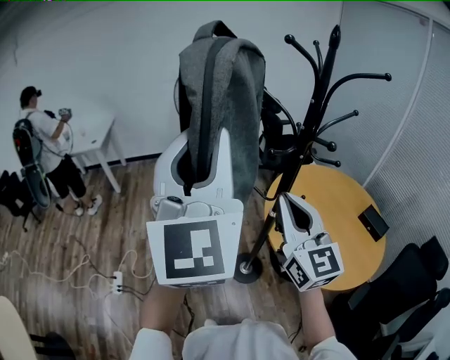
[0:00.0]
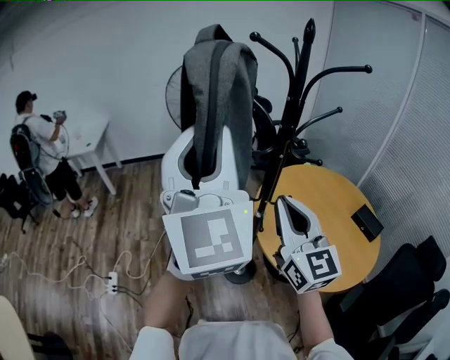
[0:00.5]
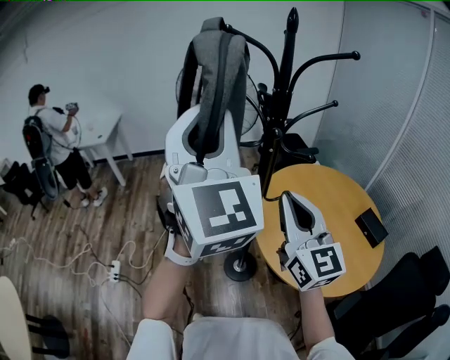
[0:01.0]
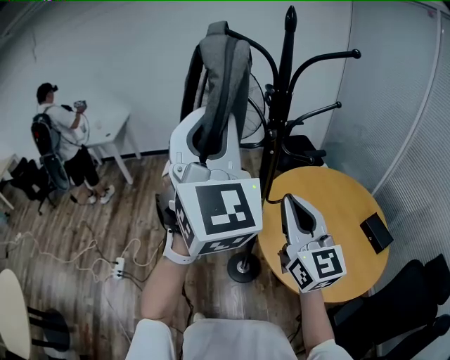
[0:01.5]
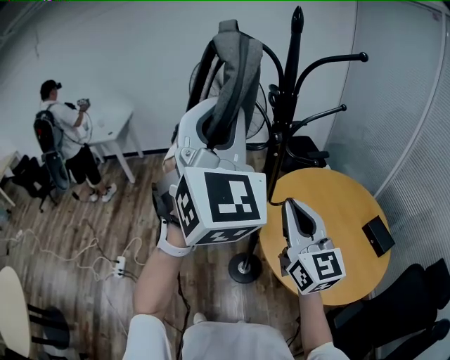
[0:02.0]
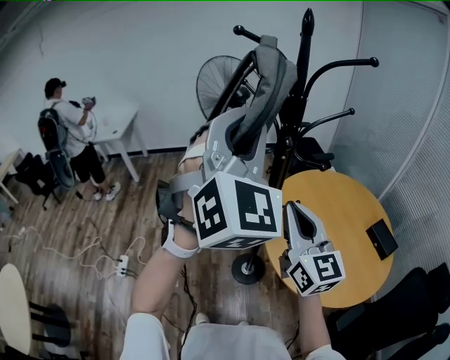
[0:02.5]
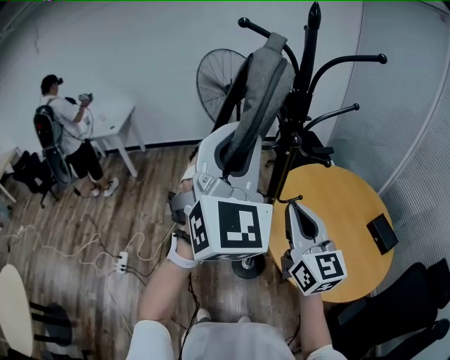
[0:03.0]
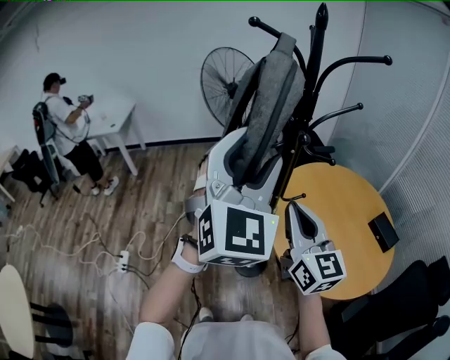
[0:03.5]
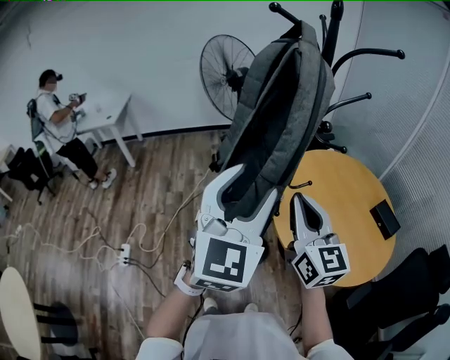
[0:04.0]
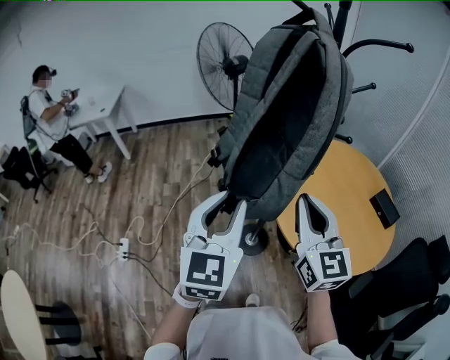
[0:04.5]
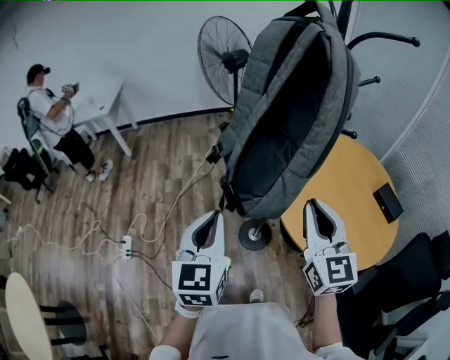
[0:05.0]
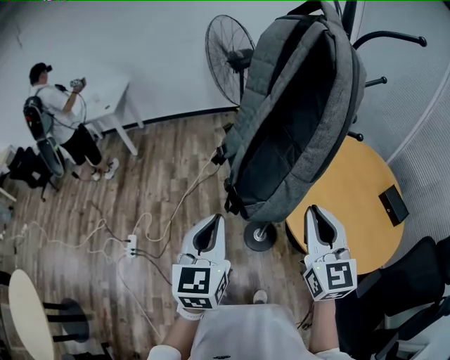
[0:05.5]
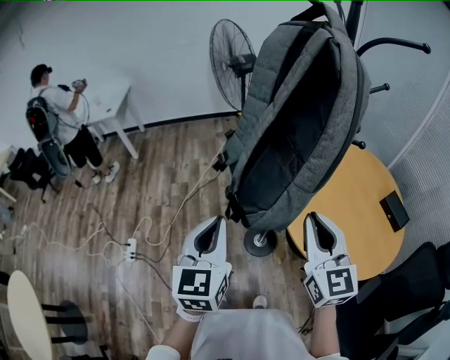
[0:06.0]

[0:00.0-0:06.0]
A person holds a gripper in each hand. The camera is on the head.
0:00.0 to 0:02.0: The grippers both shift to the right by roughly 15 cm. The left gripper swivels approximately 30 degrees.
0:02.0 to 0:04.0: The right gripper is displaced to the left by approximately 5 cm; the left gripper shifts approximately 15 cm downward, changes its angle by approximately 30 degrees, and opens its fingers.
0:04.0 to 0:06.0: The left gripper moves downward and to the left, approximately 20 cm, rotates roughly 30 degrees, and closes its fingers; the right gripper ends up roughly 5 cm from where it was.

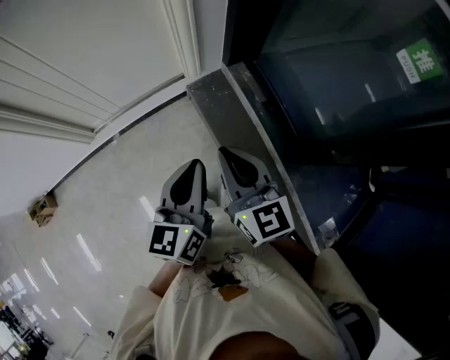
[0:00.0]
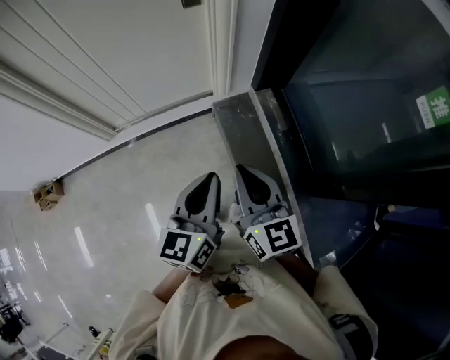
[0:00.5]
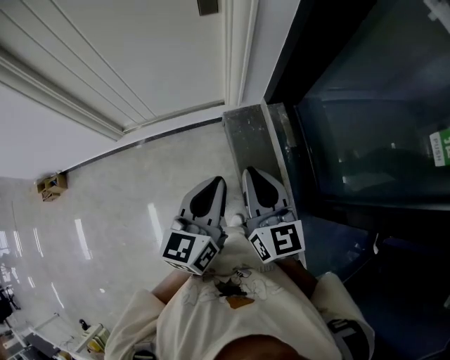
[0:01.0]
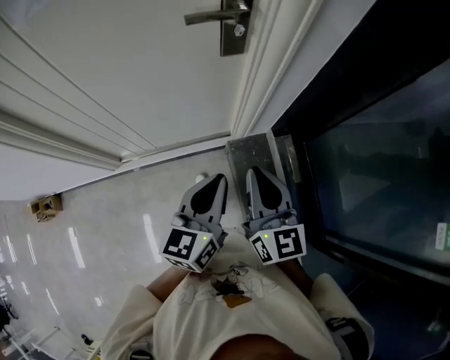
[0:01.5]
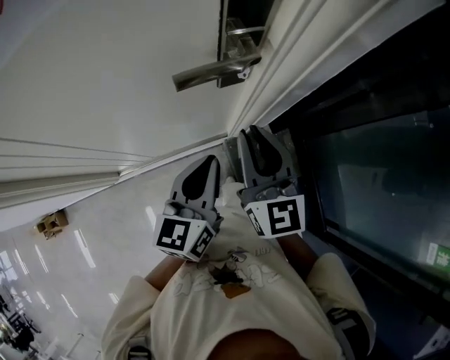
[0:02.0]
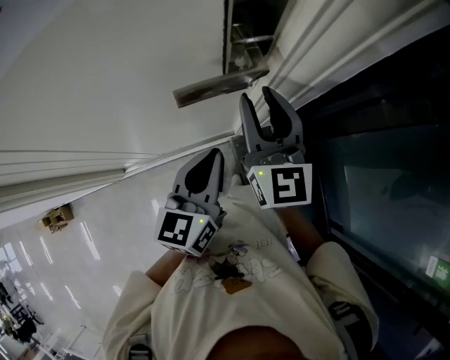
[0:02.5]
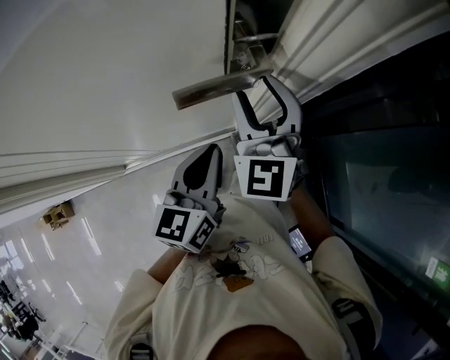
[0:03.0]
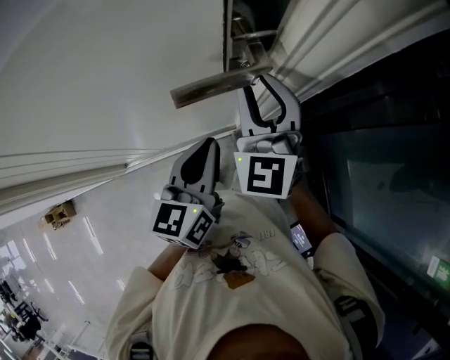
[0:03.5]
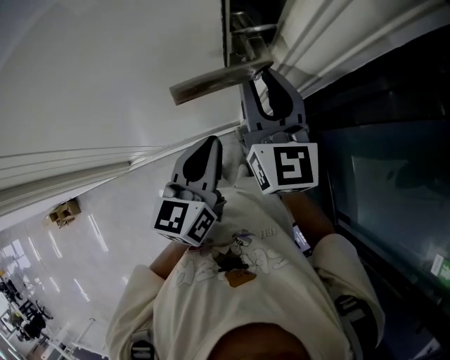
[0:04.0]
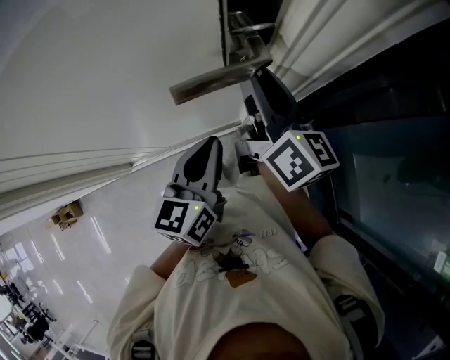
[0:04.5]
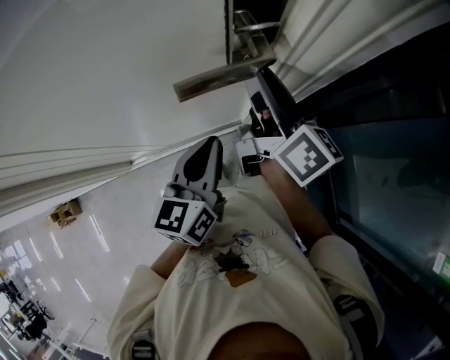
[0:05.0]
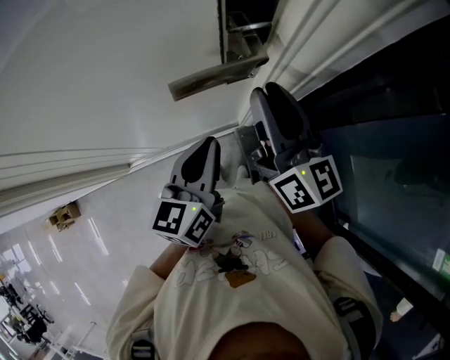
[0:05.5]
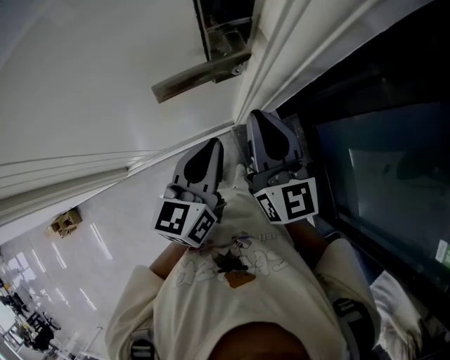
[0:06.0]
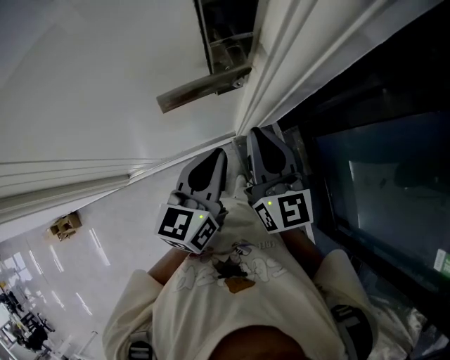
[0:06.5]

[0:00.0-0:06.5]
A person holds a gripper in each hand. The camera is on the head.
0:00.0 to 0:02.0: Both grippers are carried forward, roughly 50 cm.
0:02.0 to 0:04.5: The left gripper ends up roughly 5 cm from where it was, while the right gripper is displaced forward by roughly 10 cm, swivels about 40 degrees, and opens, then closes once more.
0:04.5 to 0:06.5: The right gripper travels backward by approximately 10 cm, changes its angle by some 20 degrees, and closes up.

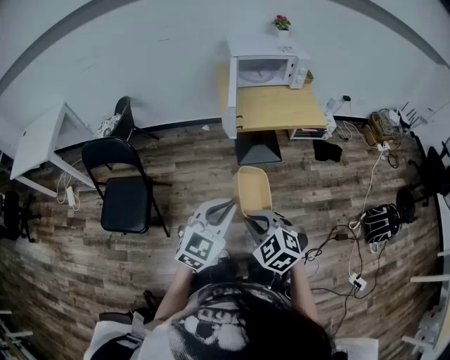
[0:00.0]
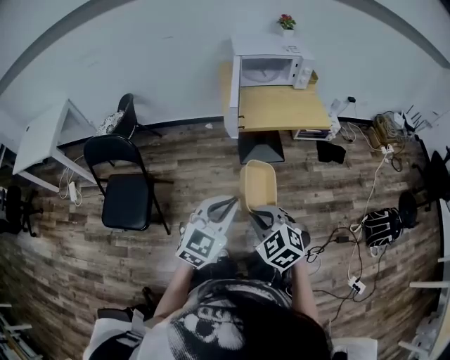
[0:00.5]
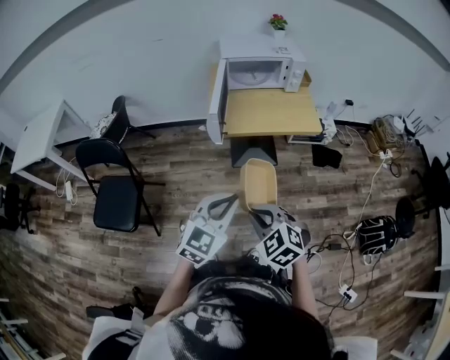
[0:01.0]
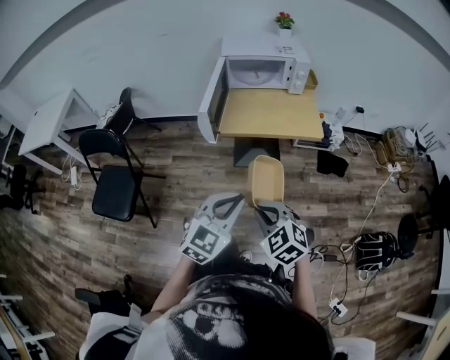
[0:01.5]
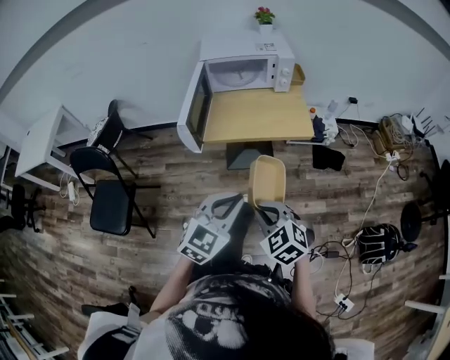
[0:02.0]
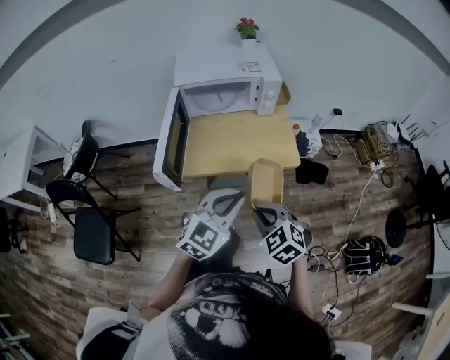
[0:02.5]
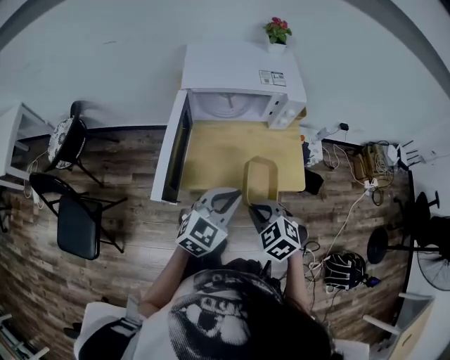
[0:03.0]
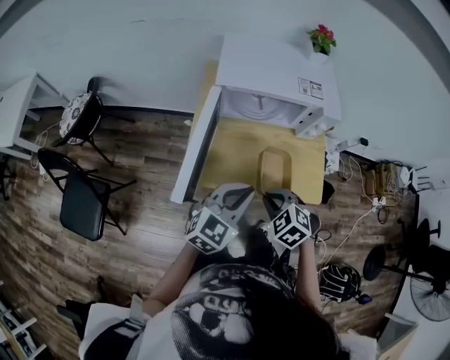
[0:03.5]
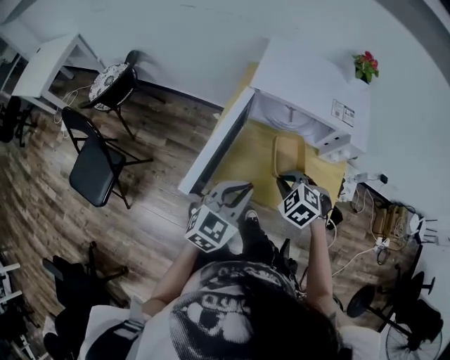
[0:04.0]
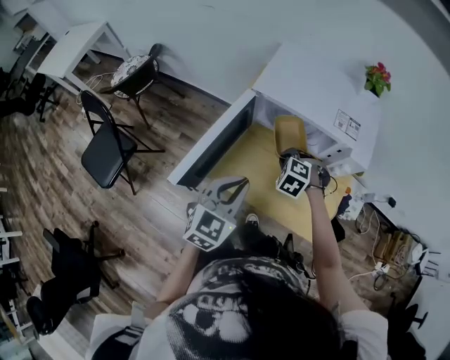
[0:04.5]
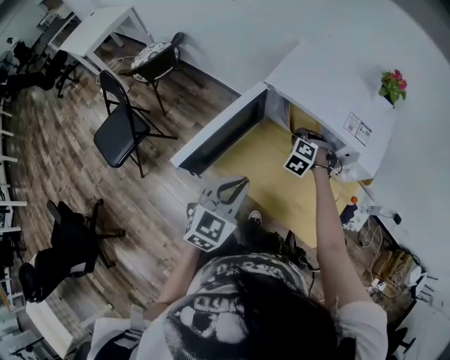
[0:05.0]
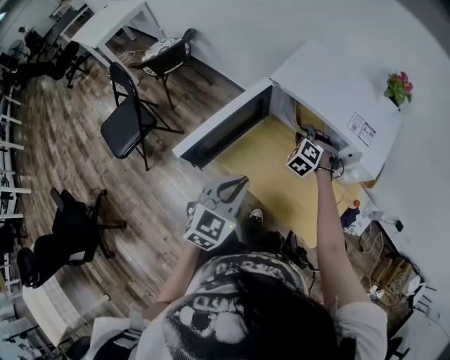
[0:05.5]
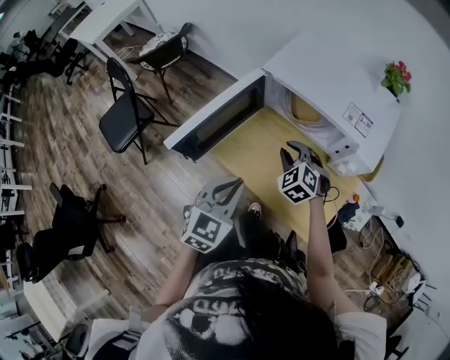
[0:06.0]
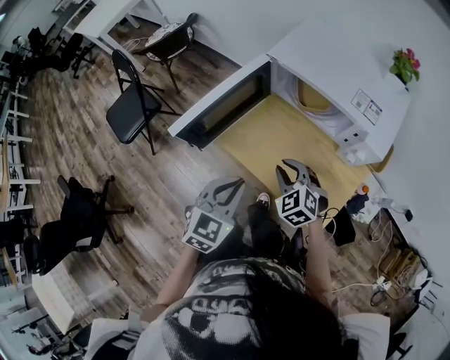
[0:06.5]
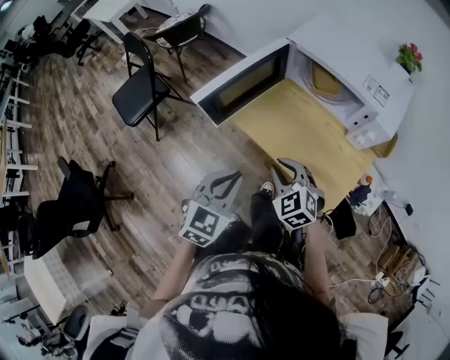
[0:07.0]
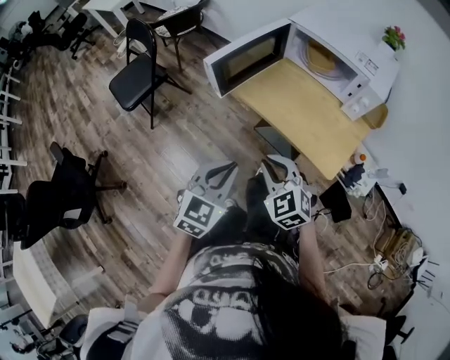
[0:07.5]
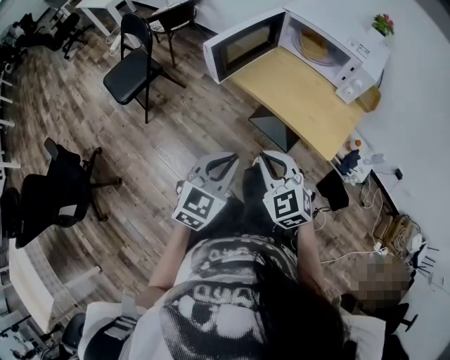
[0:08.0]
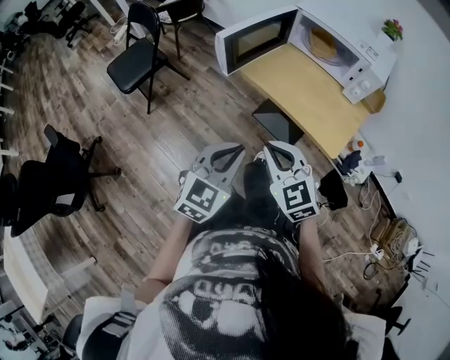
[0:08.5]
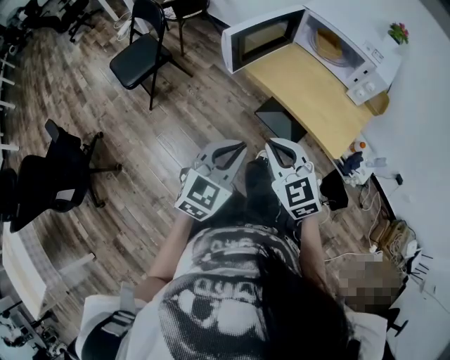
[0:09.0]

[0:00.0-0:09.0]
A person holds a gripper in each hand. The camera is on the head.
0:00.0 to 0:02.0: The grippers both shift to the right and forward by approximately 25 cm.
0:02.0 to 0:04.5: The left gripper ends up roughly 40 cm from where it was, and swivels approximately 30 degrees. Meanwhile the right gripper ends up roughly 60 cm from where it was, and rotates around the line of its fingers by roughly 40 degrees, counterclockwise from behind.
0:04.5 to 0:07.0: Both grippers travel together backward, about 20 cm. The right gripper changes its angle by some 30 degrees.
0:07.0 to 0:09.0: The right gripper moves backward, to the left and upward, roughly 25 cm; the left gripper heads backward, covering about 15 cm.

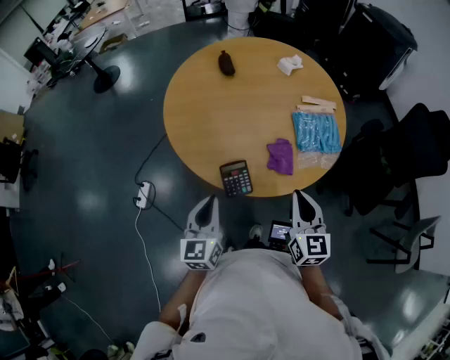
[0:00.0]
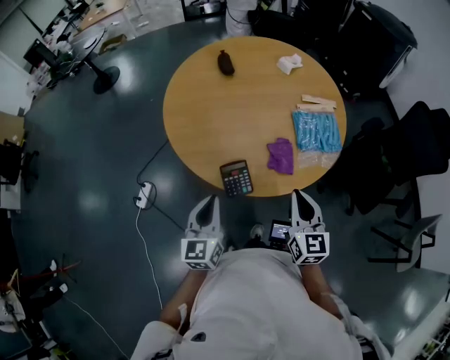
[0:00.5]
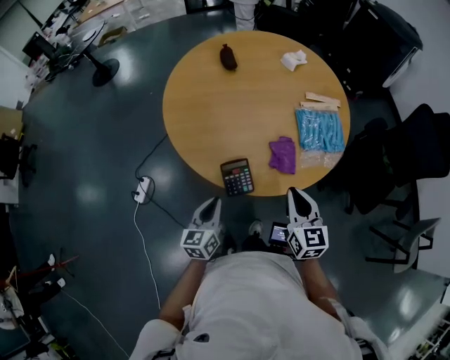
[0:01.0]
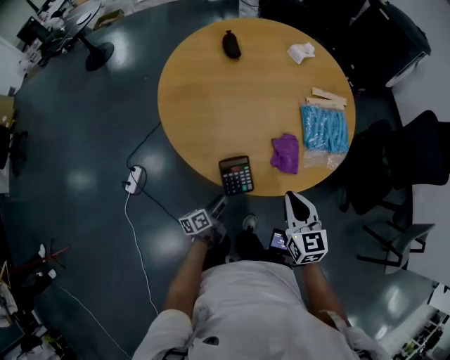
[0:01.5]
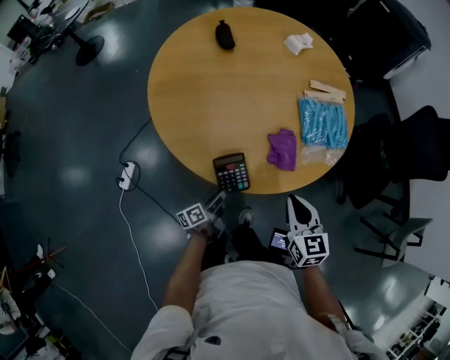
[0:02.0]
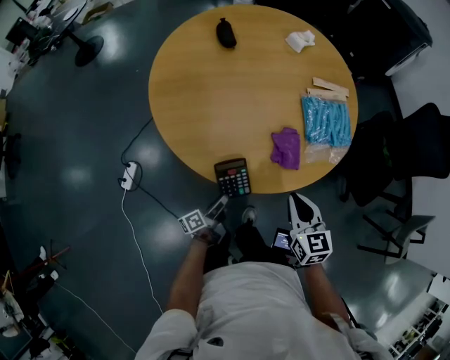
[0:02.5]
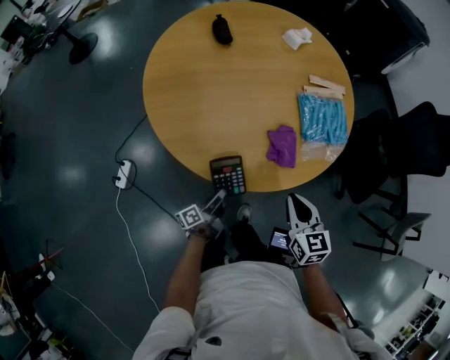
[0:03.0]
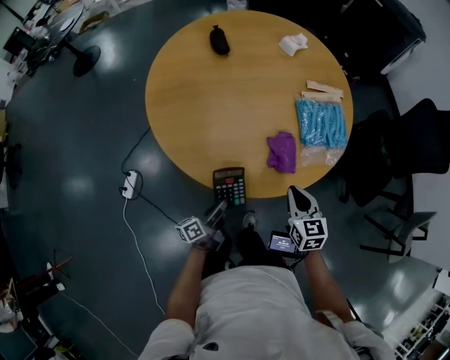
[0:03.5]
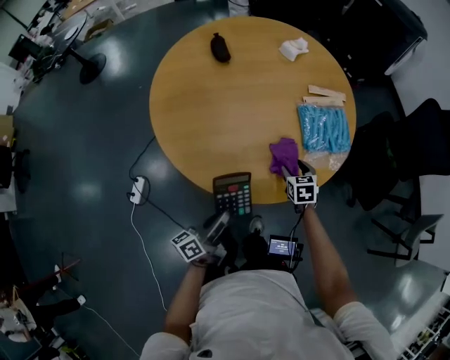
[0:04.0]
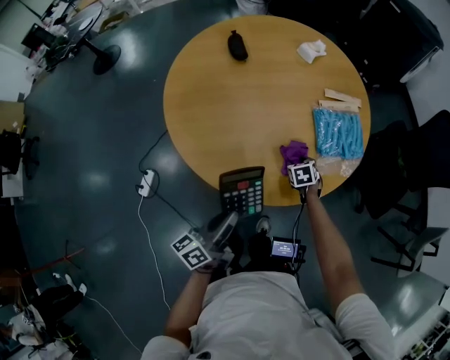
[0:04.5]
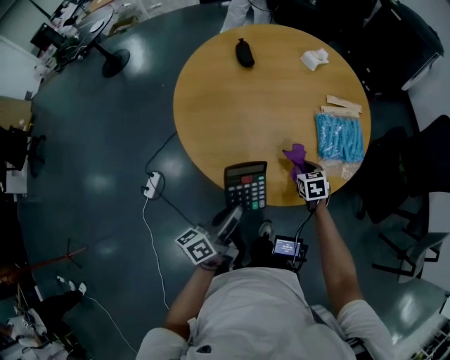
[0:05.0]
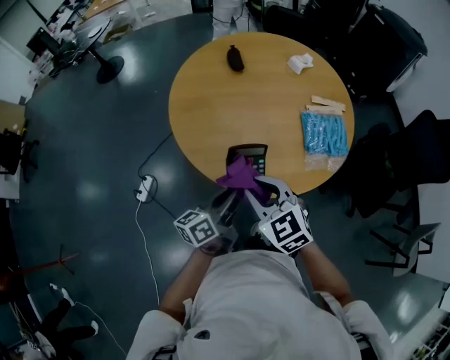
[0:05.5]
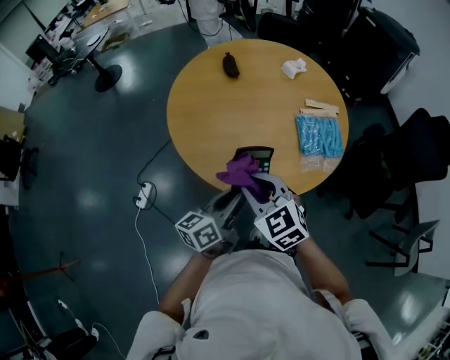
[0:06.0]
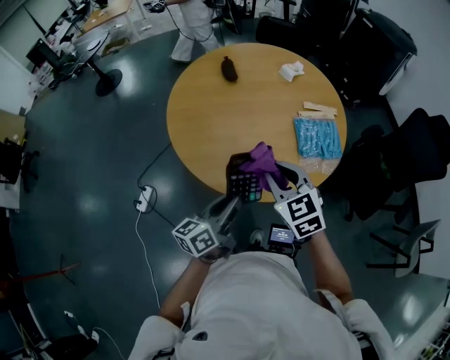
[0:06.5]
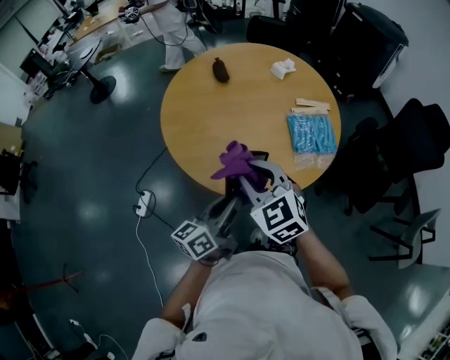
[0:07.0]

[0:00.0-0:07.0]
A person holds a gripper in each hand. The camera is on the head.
0:00.0 to 0:02.0: The right gripper heads downward, covering approximately 10 cm. Meanwhile the left gripper moves downward, roughly 30 cm, and twists roughly 60 degrees counterclockwise, seen from behind.
0:02.0 to 0:03.5: The right gripper goes roughly 5 cm downward.
0:03.5 to 0:05.0: The right gripper travels forward and downward by about 15 cm, turns by approximately 20 degrees, and opens, then closes once more, while the left gripper heads upward, covering approximately 20 cm.
0:05.0 to 0:07.0: The left gripper travels upward by some 10 cm. The right gripper moves upward and to the left, roughly 35 cm, and changes its angle by about 40 degrees.
